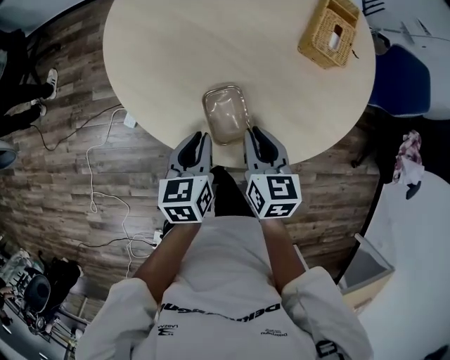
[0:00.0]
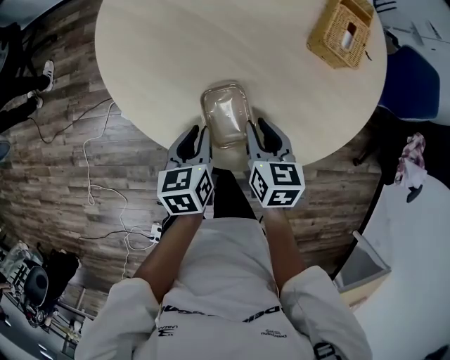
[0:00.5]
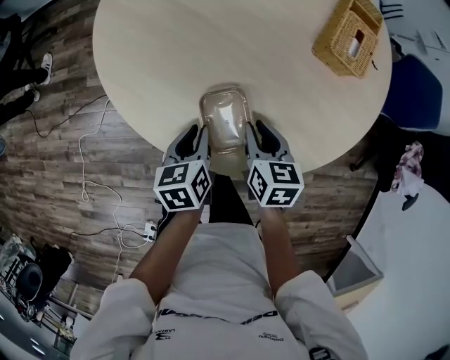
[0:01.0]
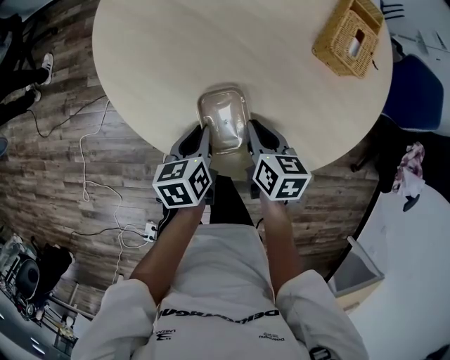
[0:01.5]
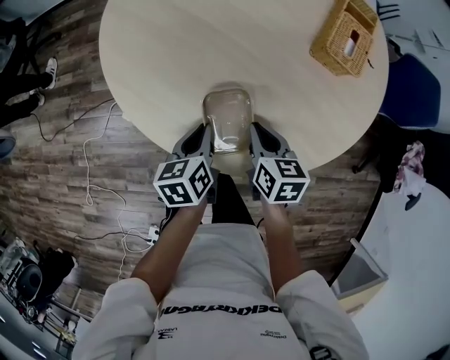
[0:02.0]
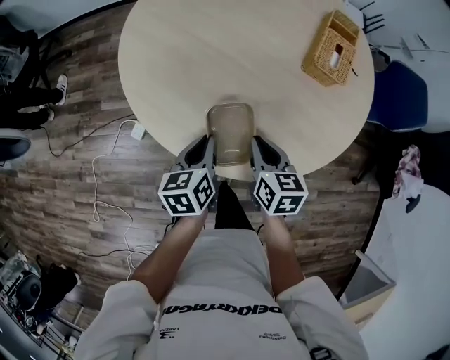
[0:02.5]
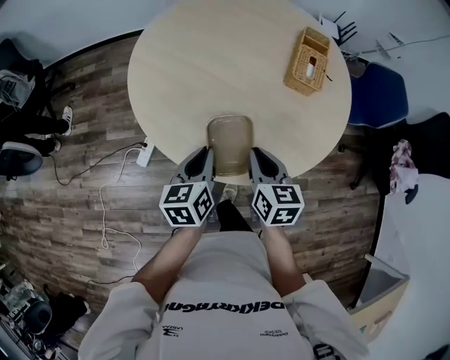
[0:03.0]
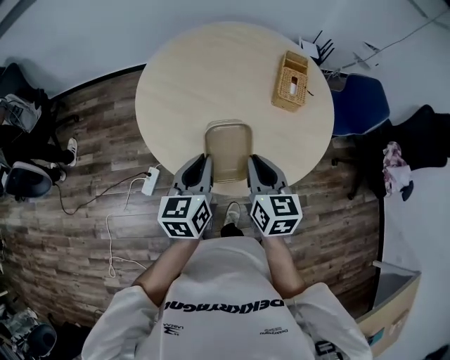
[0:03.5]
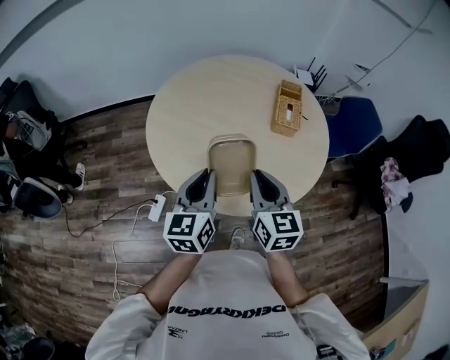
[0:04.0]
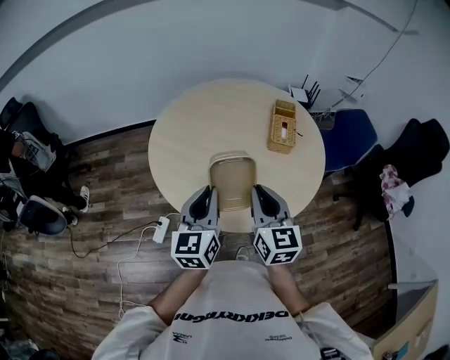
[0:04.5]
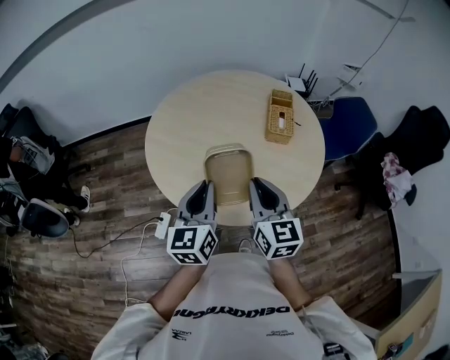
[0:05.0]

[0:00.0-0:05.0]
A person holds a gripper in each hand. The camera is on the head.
0:00.0 to 0:02.5: The right gripper travels downward and back again, some 10 cm each way, while the left gripper moves roughly 10 cm downward and comes back.
0:02.5 to 0:05.0: The grippers both shift upward by approximately 30 cm. The right gripper angles its fingers upward, by some 30 degrees. The left gripper angles its fingers upward, by about 30 degrees.

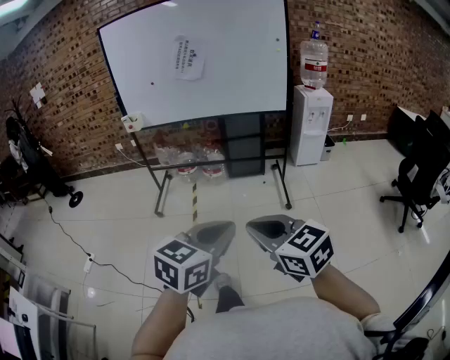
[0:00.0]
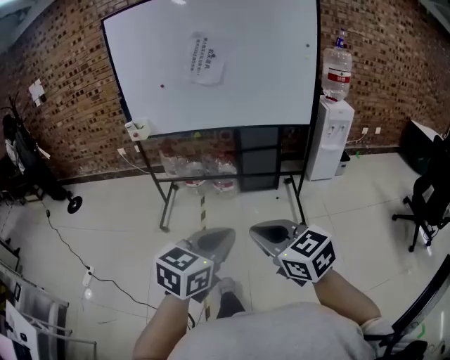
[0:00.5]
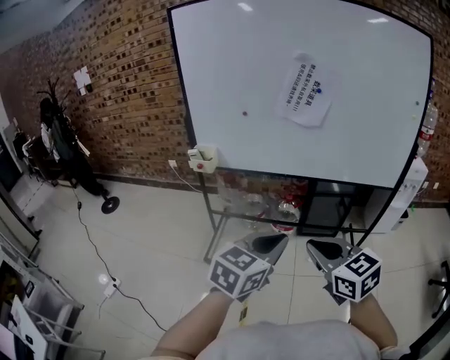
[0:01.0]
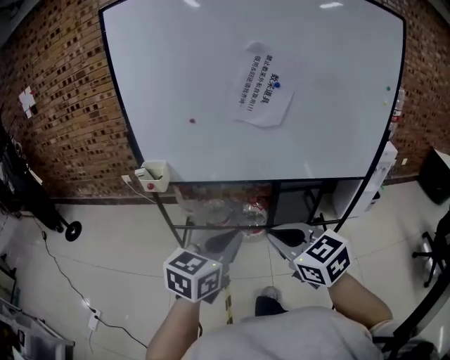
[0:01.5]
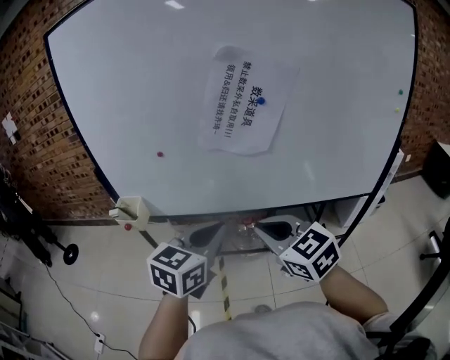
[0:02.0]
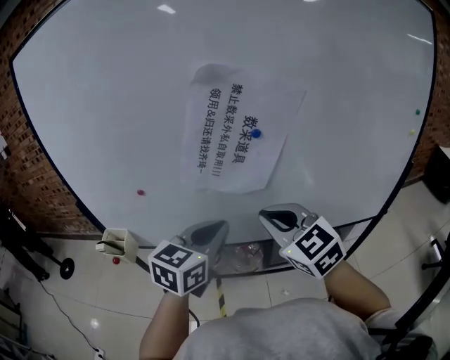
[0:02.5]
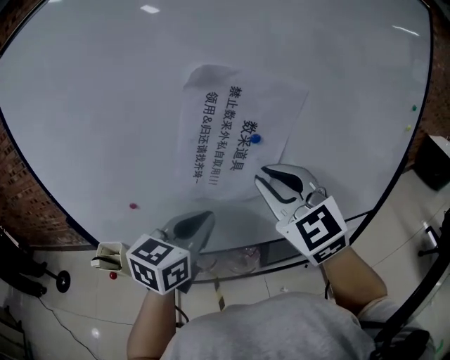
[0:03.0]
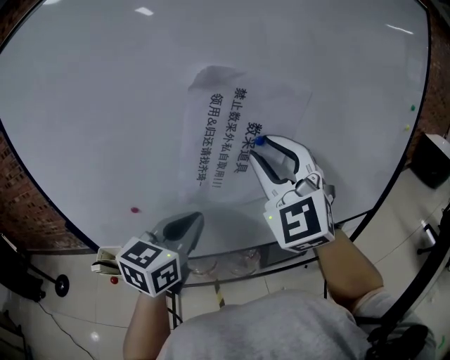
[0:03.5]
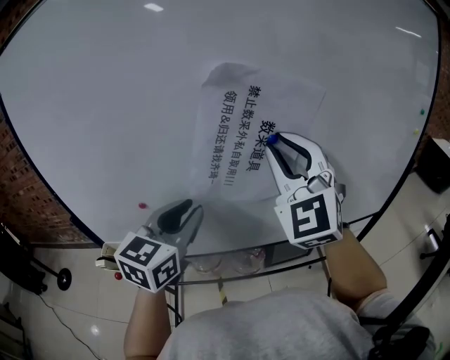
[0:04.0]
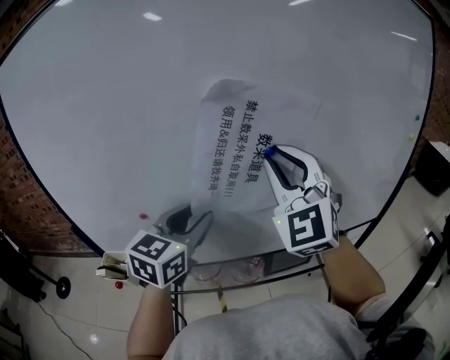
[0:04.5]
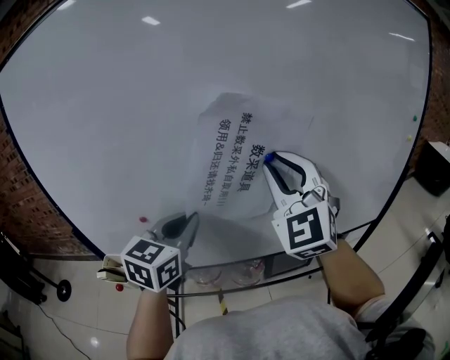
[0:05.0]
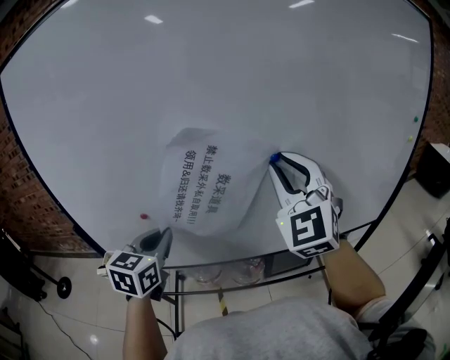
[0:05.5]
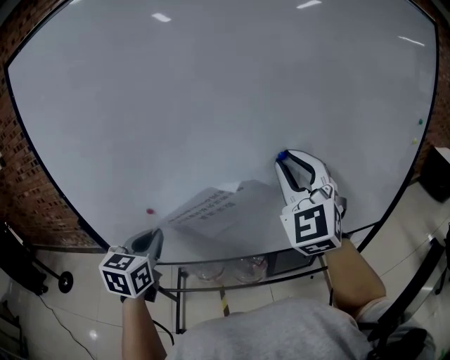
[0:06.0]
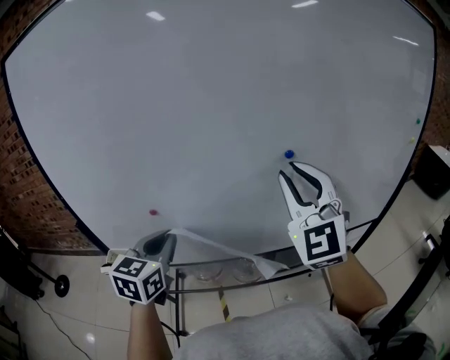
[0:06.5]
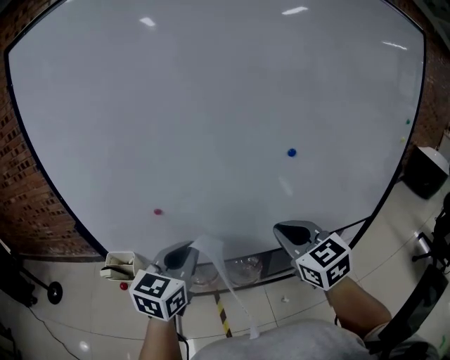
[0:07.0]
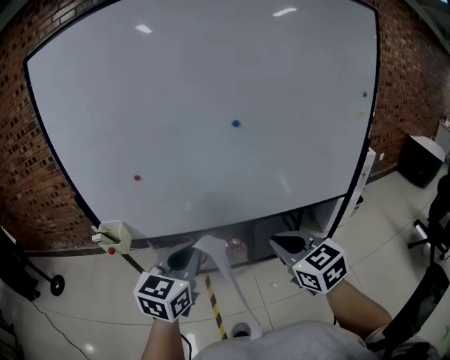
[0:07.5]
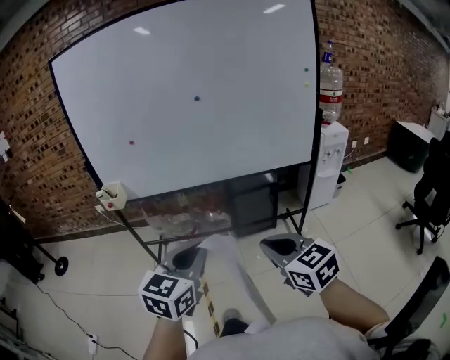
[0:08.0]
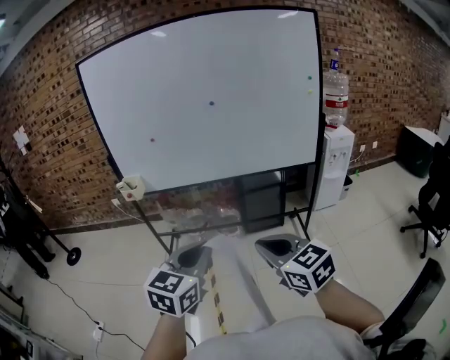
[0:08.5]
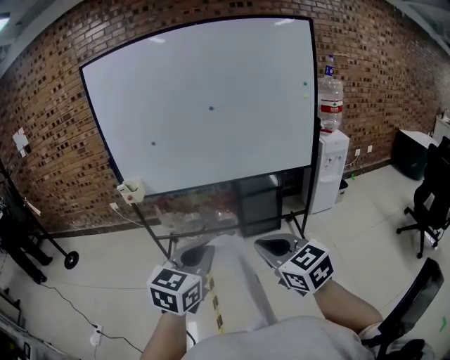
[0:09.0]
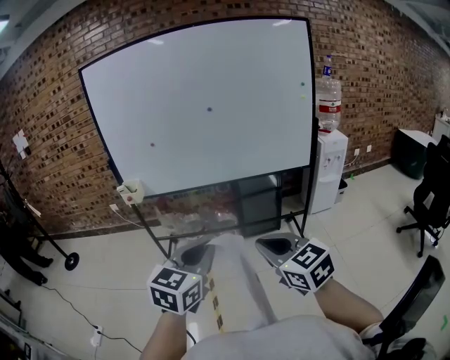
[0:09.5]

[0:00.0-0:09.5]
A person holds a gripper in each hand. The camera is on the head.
0:00.0 to 0:02.0: The pair of grippers is taken forward, approximately 60 cm.
0:02.0 to 0:04.0: The left gripper heads forward and upward, covering approximately 20 cm, and opens its fingers. Meanwhile the right gripper heads forward and upward, covering about 30 cm, and angles its fingers upward, by approximately 30 degrees.
0:04.0 to 0:05.5: The left gripper shifts approximately 10 cm to the left and downward, and closes.
0:05.5 to 0:07.5: The left gripper is displaced backward and to the right by some 20 cm; the right gripper moves backward and downward, some 30 cm, and swivels roughly 50 degrees.
0:07.5 to 0:09.5: Both grippers move backward, roughly 35 cm.

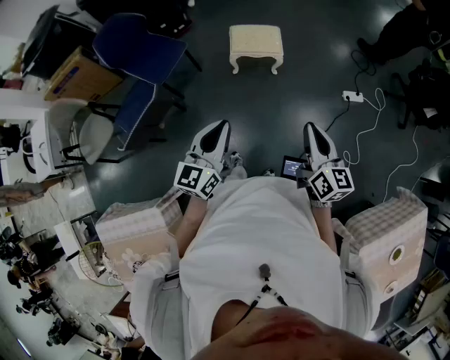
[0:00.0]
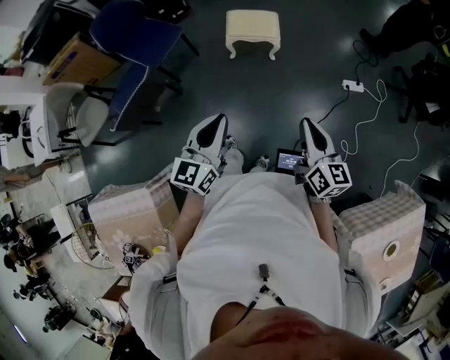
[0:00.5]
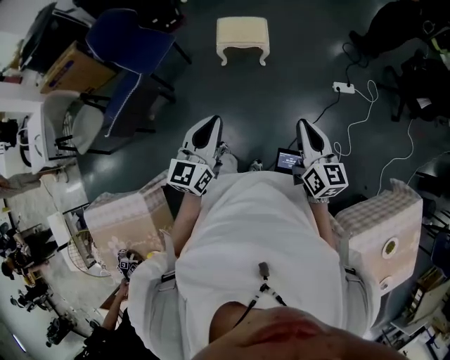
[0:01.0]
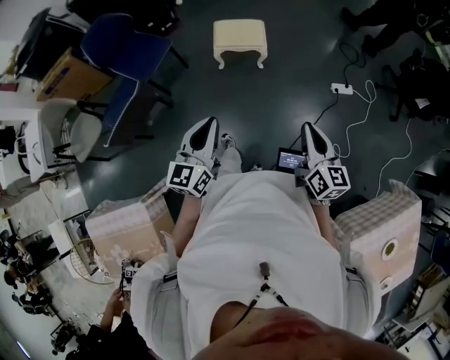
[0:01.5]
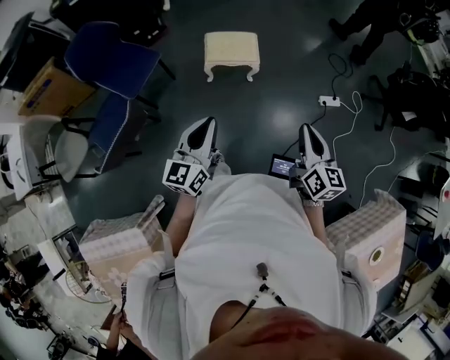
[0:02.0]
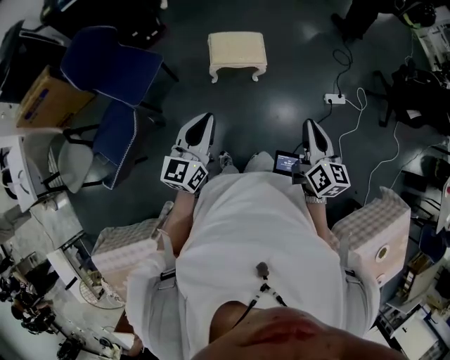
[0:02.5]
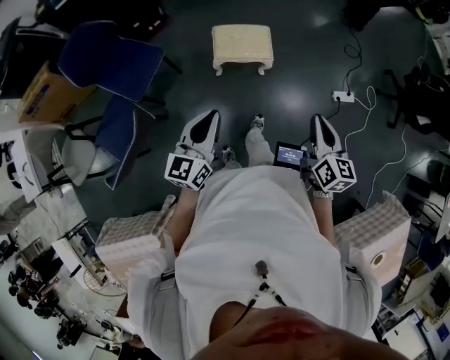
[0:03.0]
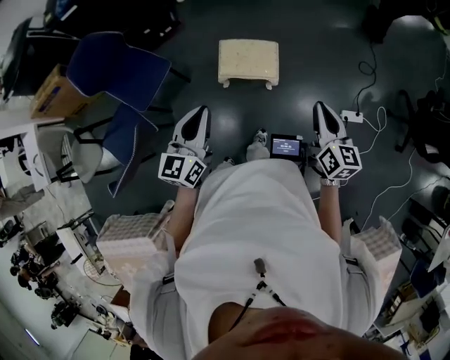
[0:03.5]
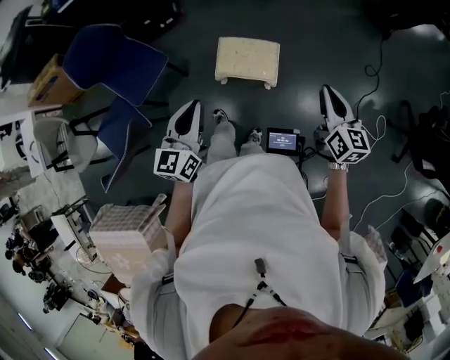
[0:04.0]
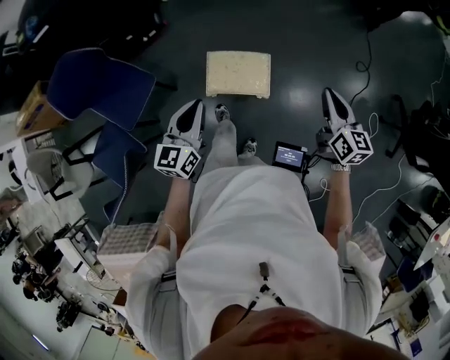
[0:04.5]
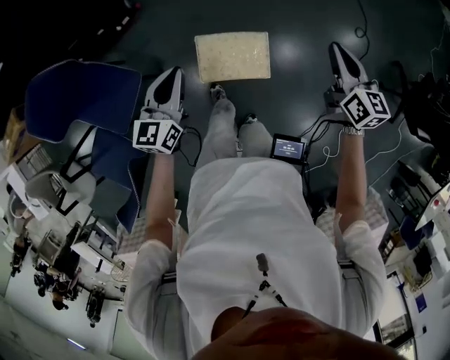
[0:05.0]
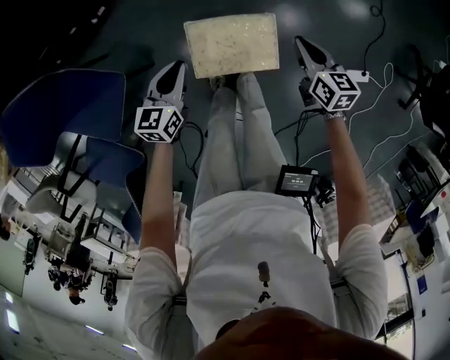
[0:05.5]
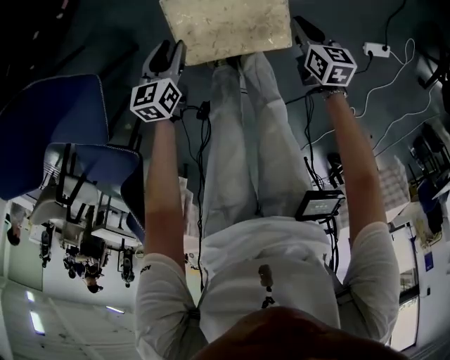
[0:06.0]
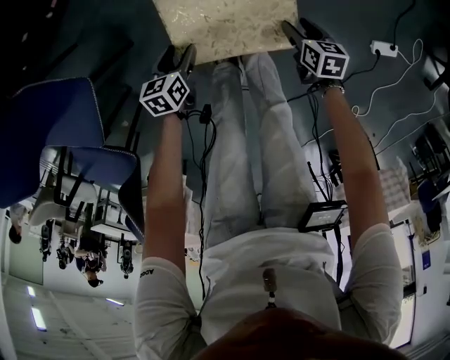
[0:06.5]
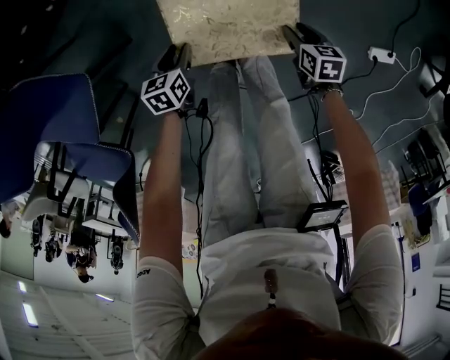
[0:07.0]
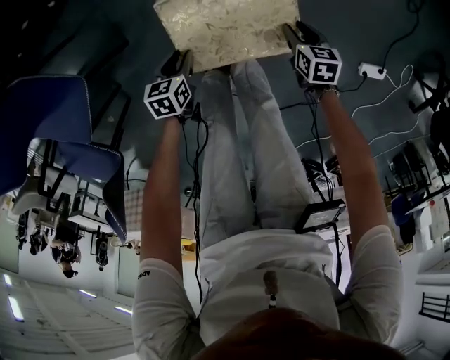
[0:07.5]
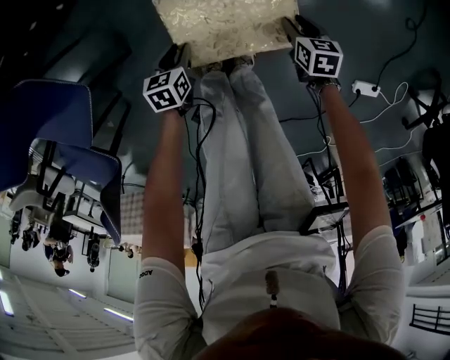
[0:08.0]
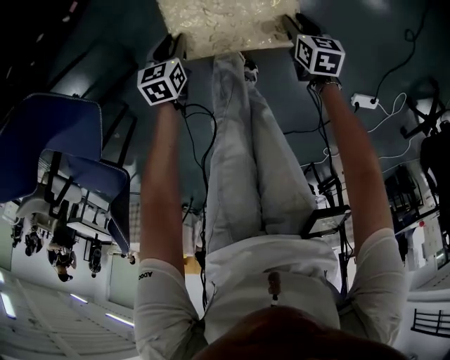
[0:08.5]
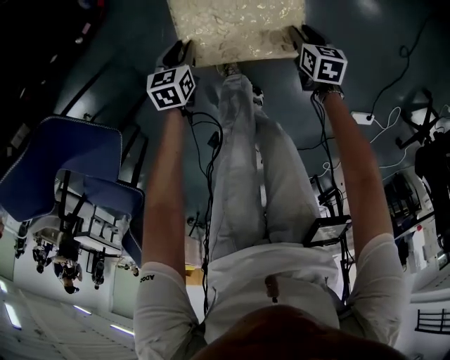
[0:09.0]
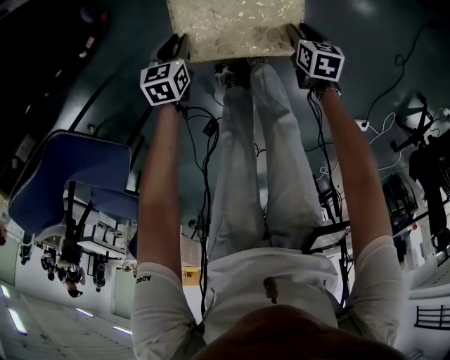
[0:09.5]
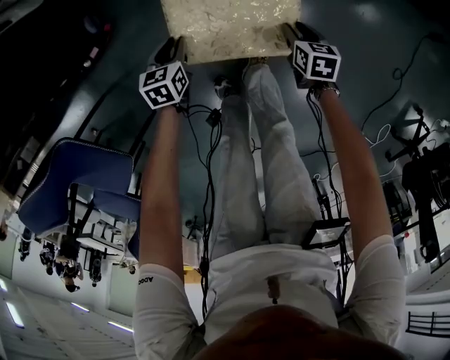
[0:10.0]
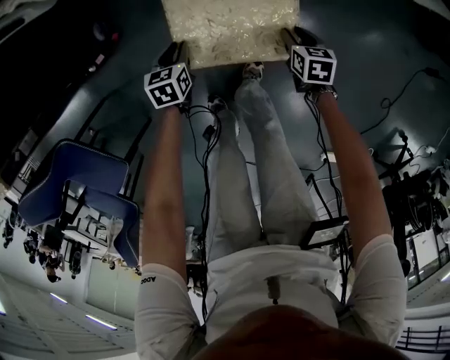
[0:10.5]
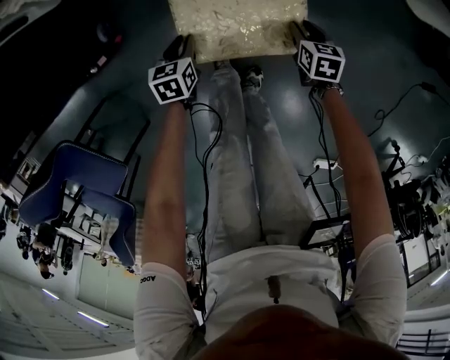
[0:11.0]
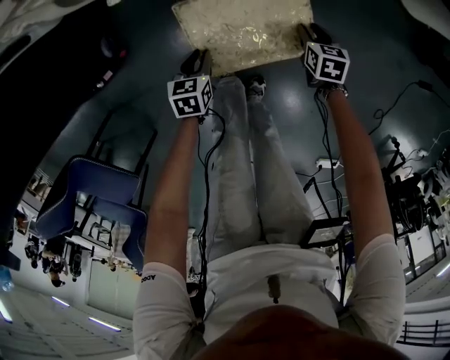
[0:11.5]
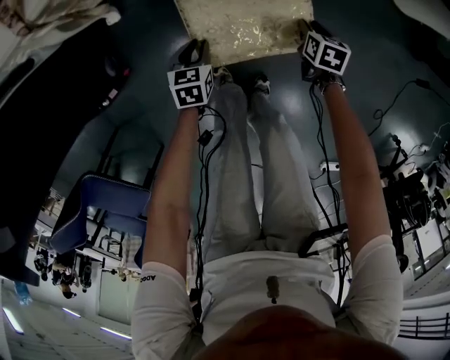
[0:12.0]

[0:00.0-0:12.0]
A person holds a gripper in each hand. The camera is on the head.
0:00.0 to 0:02.0: The grippers both shift forward by about 10 cm.
0:02.0 to 0:04.0: The grippers both shift forward by some 40 cm.
0:04.0 to 0:06.0: Both grippers move downward and forward, about 60 cm. The left gripper angles its fingers downward, by some 30 degrees, and opens; the right gripper tilts its fingers some 30 degrees downward.
0:06.0 to 0:08.0: The left gripper shifts some 10 cm downward and forward, and changes its angle by about 20 degrees. The right gripper travels forward and downward by about 20 cm, and opens.
0:08.0 to 0:10.0: The two grippers go roughly 40 cm forward.
0:10.0 to 0:12.0: The two grippers go about 30 cm forward.
